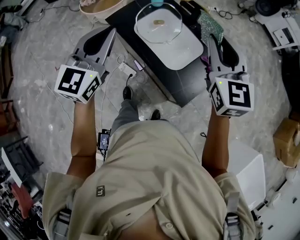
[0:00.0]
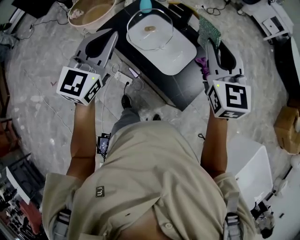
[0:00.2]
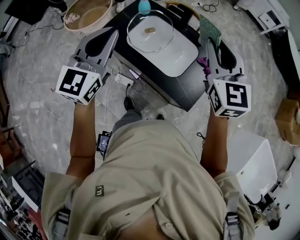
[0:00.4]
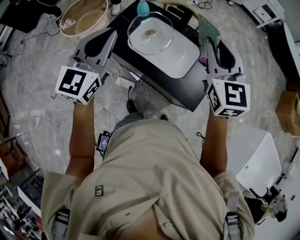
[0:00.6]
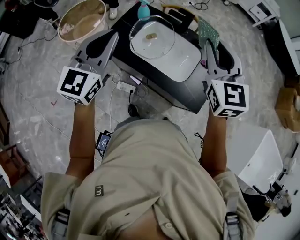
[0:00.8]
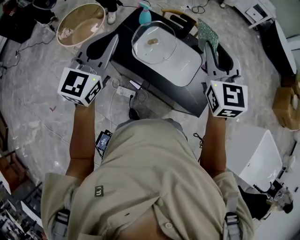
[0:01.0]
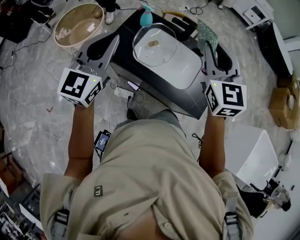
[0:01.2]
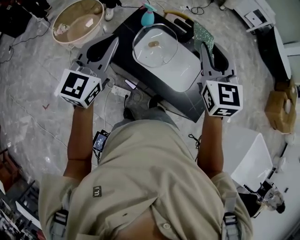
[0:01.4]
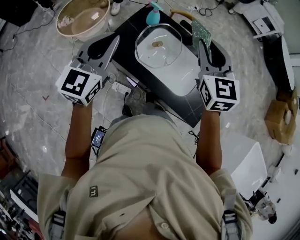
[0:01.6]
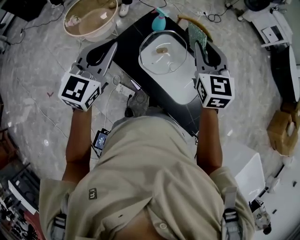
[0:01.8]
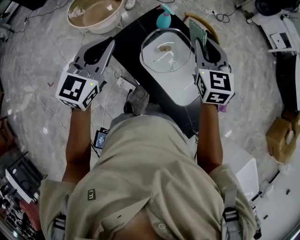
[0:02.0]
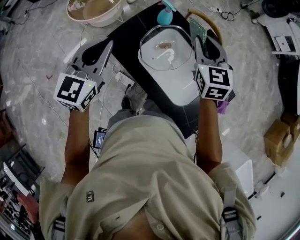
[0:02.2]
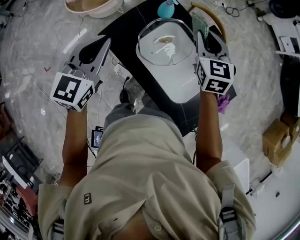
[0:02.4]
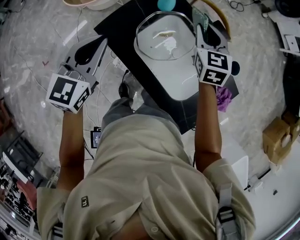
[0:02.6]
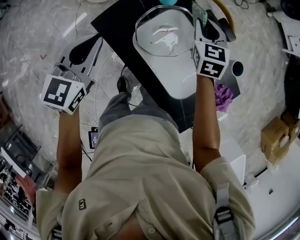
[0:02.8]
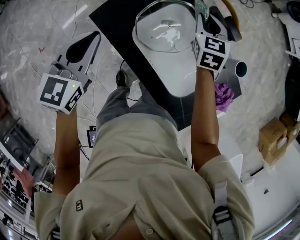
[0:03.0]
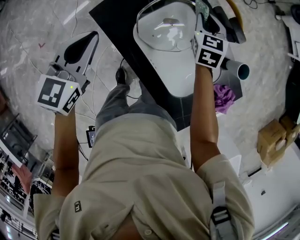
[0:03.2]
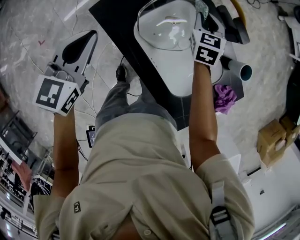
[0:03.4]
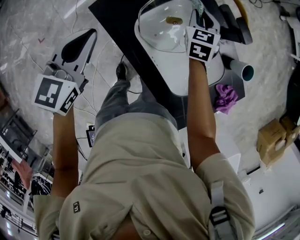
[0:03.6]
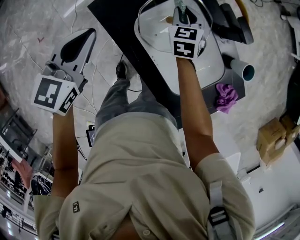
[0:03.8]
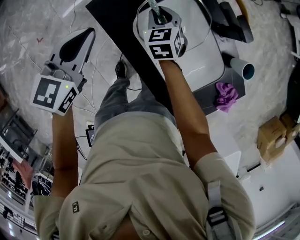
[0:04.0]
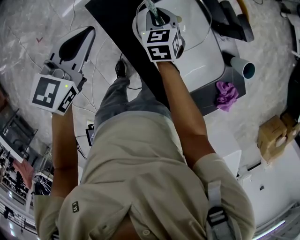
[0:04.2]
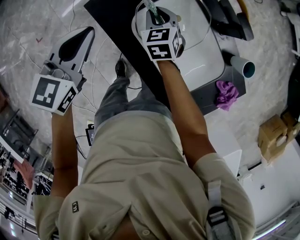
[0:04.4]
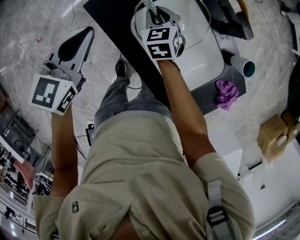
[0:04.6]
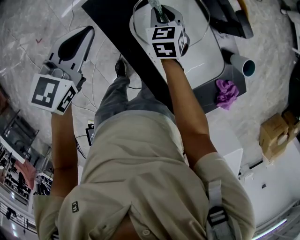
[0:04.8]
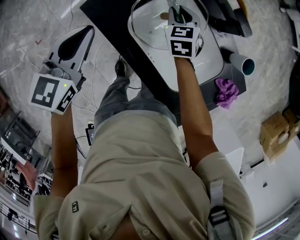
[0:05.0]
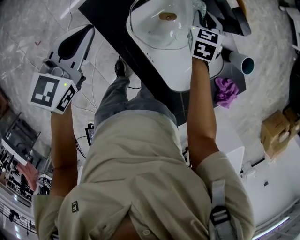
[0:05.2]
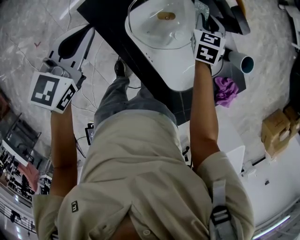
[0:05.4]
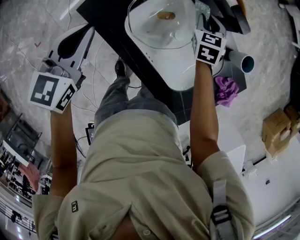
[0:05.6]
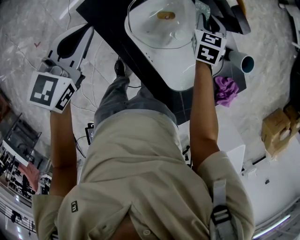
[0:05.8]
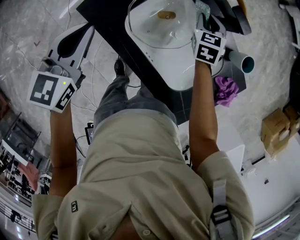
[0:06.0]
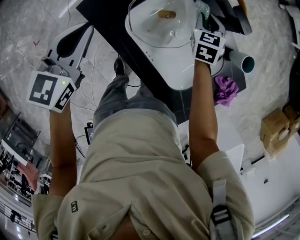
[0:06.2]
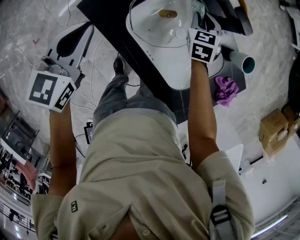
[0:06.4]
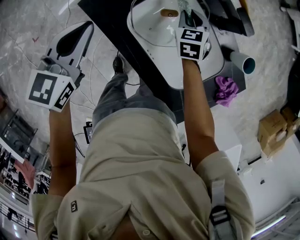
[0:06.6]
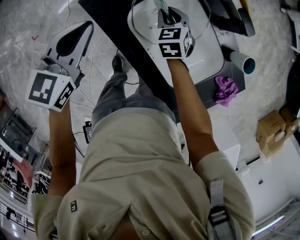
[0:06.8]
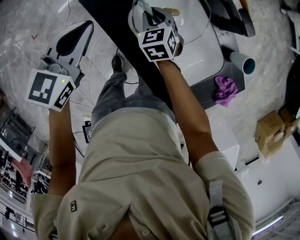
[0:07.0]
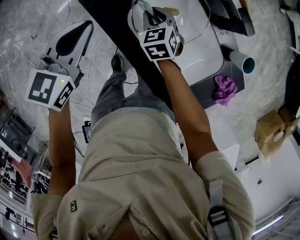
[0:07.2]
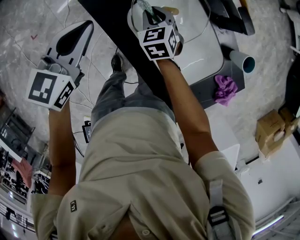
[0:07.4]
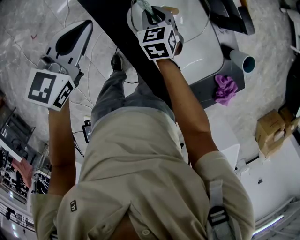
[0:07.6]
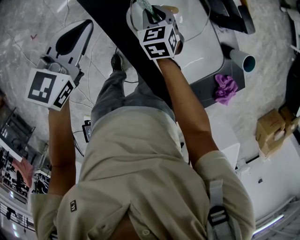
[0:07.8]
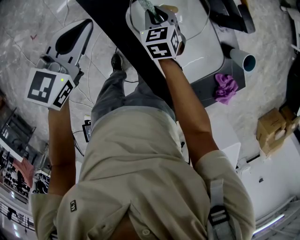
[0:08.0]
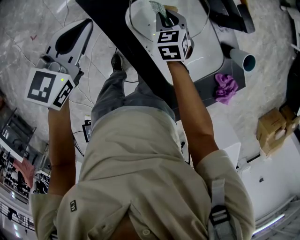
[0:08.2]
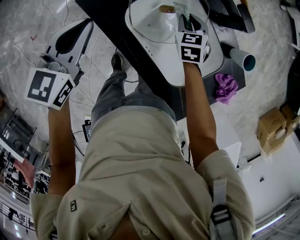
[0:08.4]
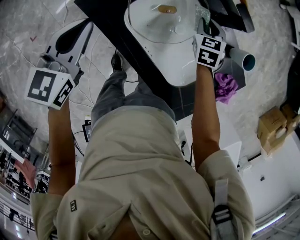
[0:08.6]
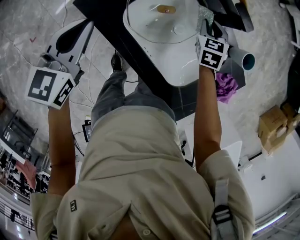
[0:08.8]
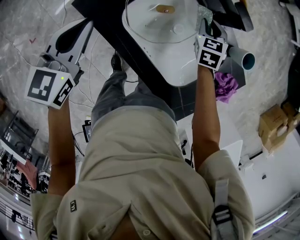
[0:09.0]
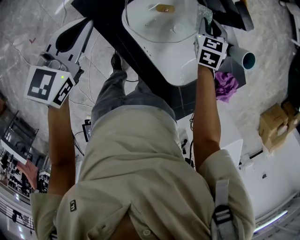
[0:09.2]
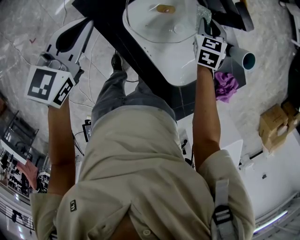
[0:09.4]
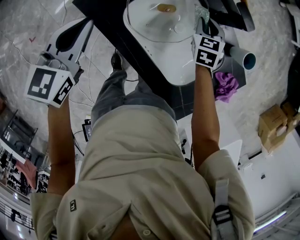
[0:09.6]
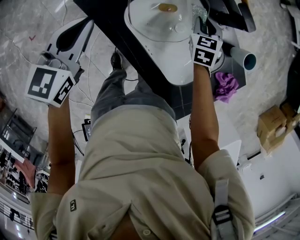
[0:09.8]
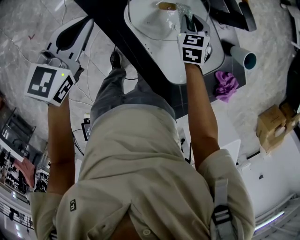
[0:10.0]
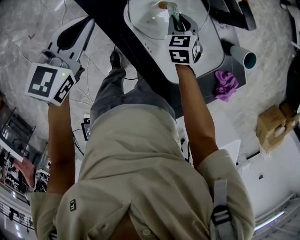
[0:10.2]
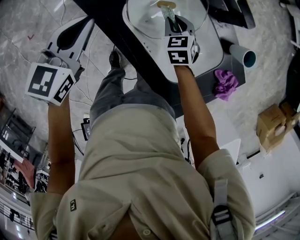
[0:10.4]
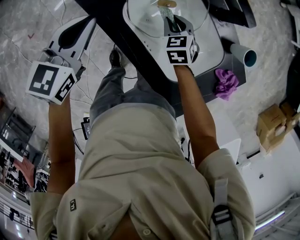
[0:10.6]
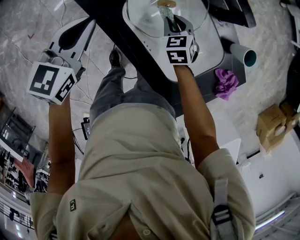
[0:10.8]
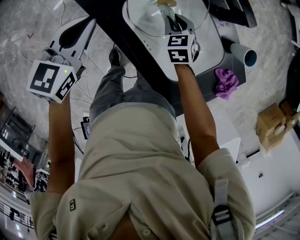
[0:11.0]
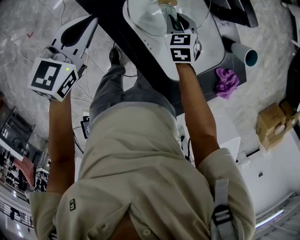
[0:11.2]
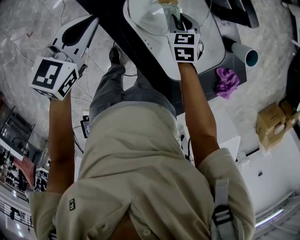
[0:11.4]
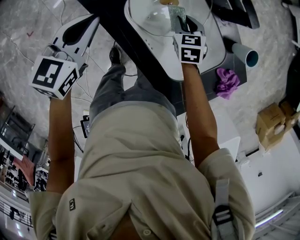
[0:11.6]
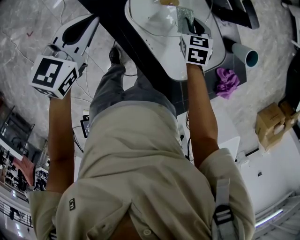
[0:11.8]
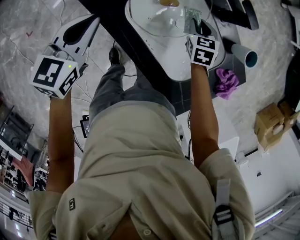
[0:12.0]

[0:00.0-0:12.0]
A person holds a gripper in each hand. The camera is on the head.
0:00.0 to 0:01.6: The right gripper goes about 20 cm to the left and forward; the left gripper is displaced forward and to the left by about 20 cm.
0:01.6 to 0:03.0: The left gripper is displaced downward by some 15 cm, and changes its angle by approximately 30 degrees. Meanwhile the right gripper moves downward and forward, roughly 35 cm, and swivels about 20 degrees.
0:03.0 to 0:04.4: The right gripper heads to the left, downward and backward, covering about 20 cm.
0:04.4 to 0:06.0: The right gripper is displaced to the right by some 20 cm, and turns by approximately 20 degrees.
0:06.0 to 0:07.6: The right gripper heads to the left, covering some 20 cm, and changes its angle by roughly 20 degrees.
0:07.6 to 0:09.0: The right gripper goes roughly 25 cm to the right, and changes its angle by some 20 degrees.
0:09.0 to 0:10.4: The right gripper moves to the left and backward, some 15 cm.
0:10.4 to 0:12.0: The right gripper travels to the right by about 10 cm.

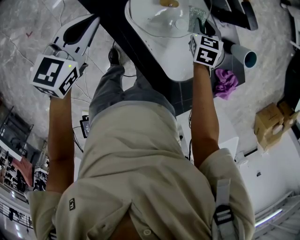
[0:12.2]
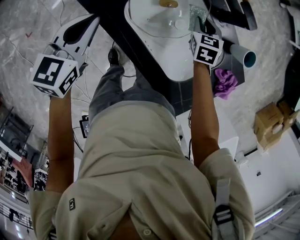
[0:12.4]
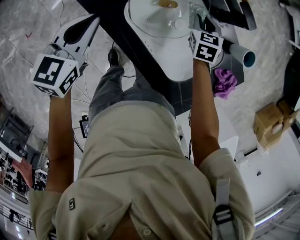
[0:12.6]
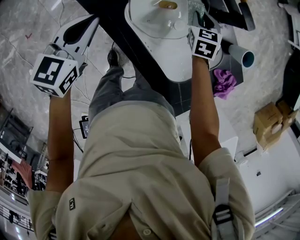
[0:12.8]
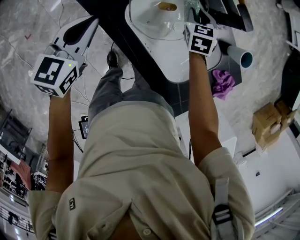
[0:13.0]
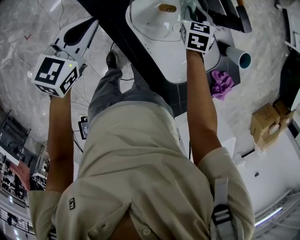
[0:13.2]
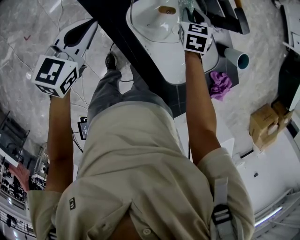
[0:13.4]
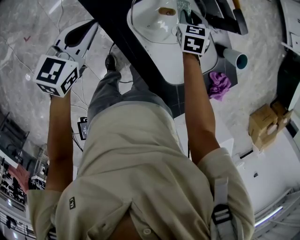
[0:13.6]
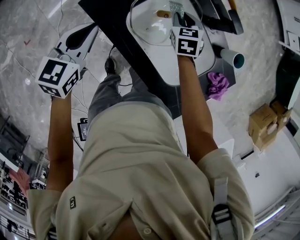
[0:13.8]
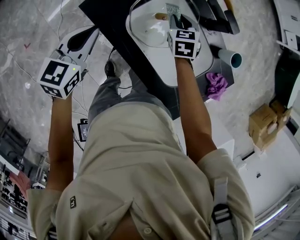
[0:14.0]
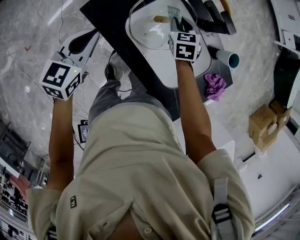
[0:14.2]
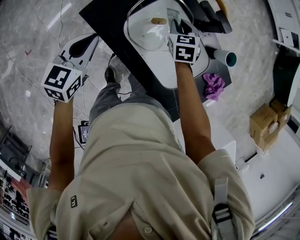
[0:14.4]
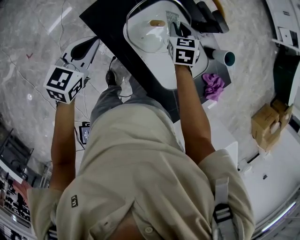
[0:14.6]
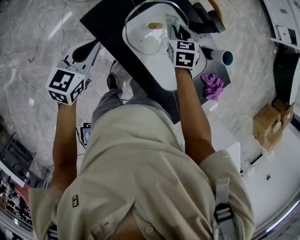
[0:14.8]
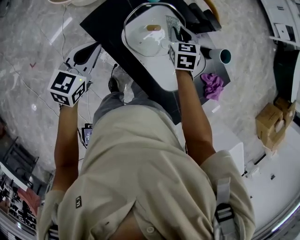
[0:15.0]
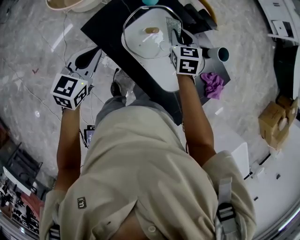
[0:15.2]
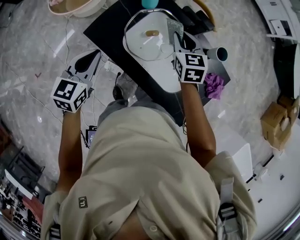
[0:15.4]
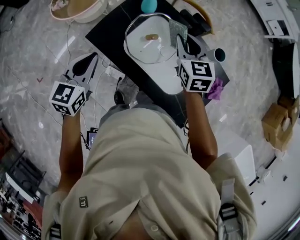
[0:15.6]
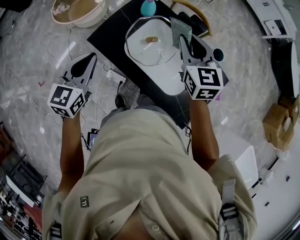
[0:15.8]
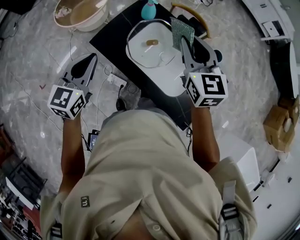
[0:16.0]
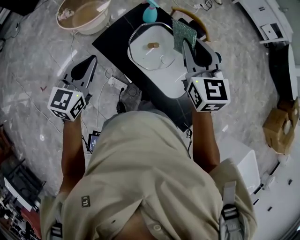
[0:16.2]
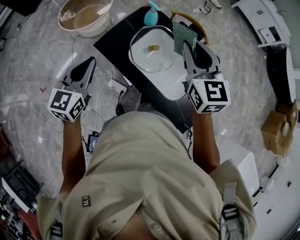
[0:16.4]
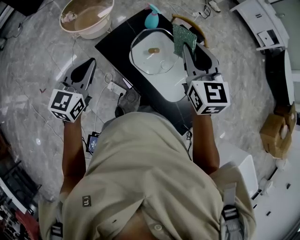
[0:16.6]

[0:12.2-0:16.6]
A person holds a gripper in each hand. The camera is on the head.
0:12.2 to 0:13.6: The right gripper shifts roughly 10 cm to the left.
0:13.6 to 0:15.2: The right gripper moves upward, about 15 cm; the left gripper goes approximately 5 cm upward.
0:15.2 to 0:16.6: The right gripper heads upward and backward, covering approximately 30 cm, and changes its angle by some 30 degrees. Meanwhile the left gripper shifts about 15 cm upward, backward and to the left.

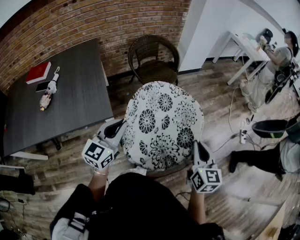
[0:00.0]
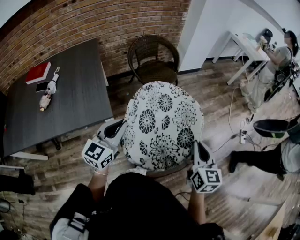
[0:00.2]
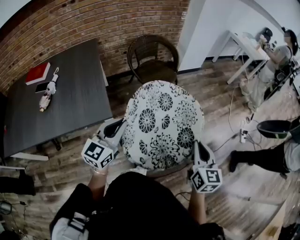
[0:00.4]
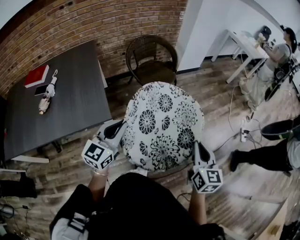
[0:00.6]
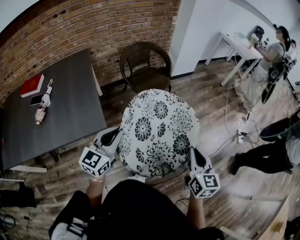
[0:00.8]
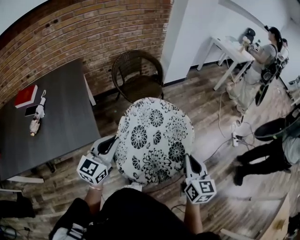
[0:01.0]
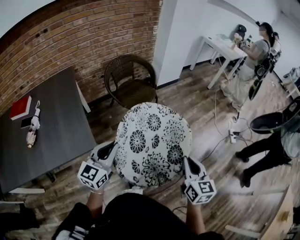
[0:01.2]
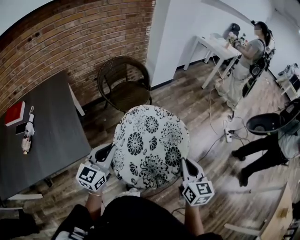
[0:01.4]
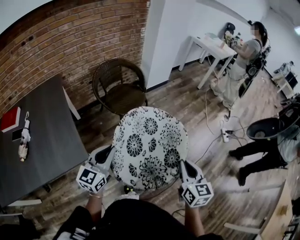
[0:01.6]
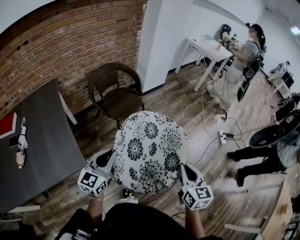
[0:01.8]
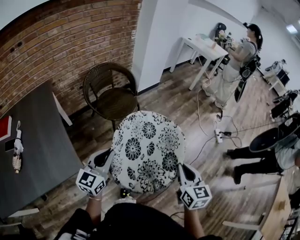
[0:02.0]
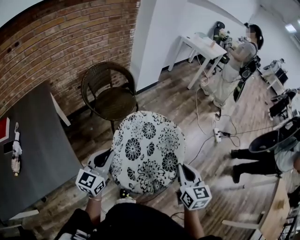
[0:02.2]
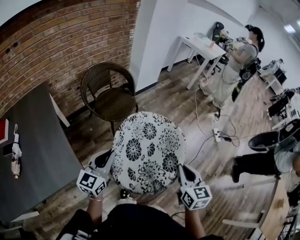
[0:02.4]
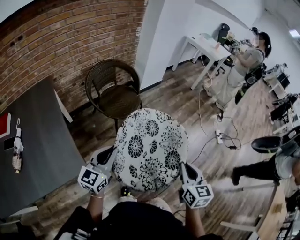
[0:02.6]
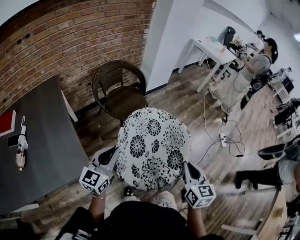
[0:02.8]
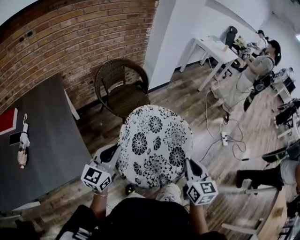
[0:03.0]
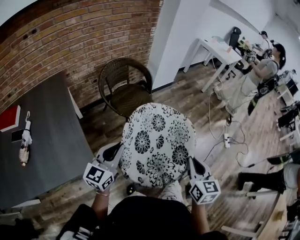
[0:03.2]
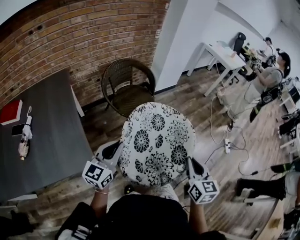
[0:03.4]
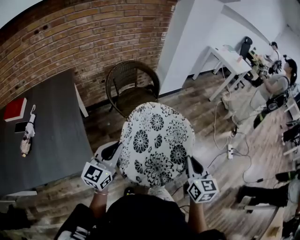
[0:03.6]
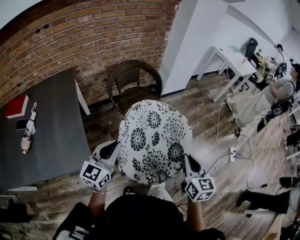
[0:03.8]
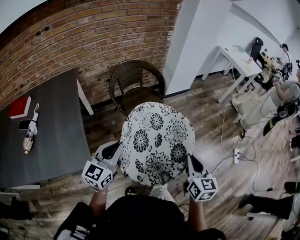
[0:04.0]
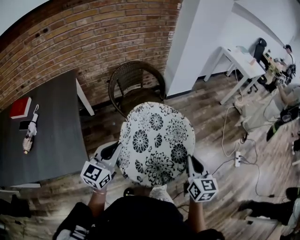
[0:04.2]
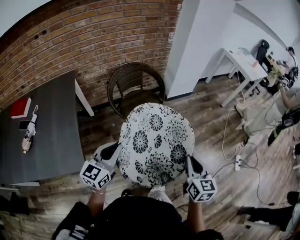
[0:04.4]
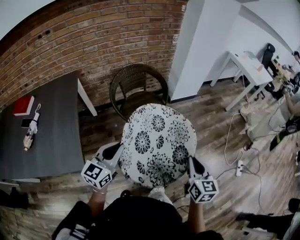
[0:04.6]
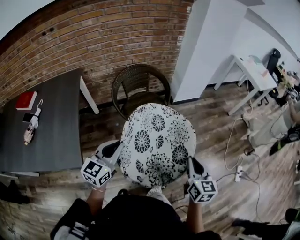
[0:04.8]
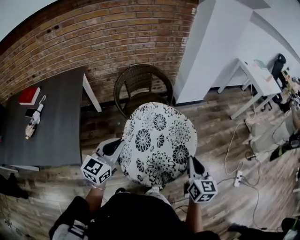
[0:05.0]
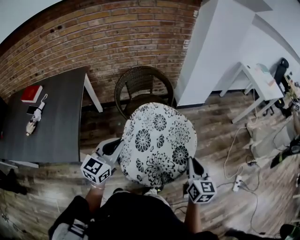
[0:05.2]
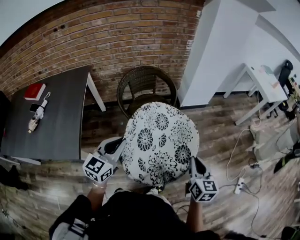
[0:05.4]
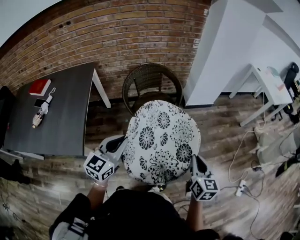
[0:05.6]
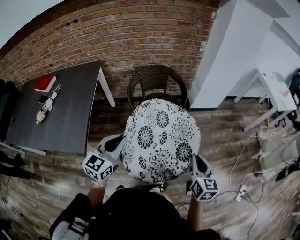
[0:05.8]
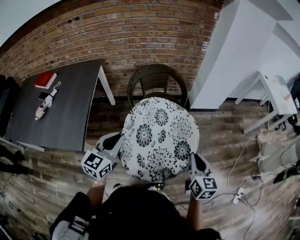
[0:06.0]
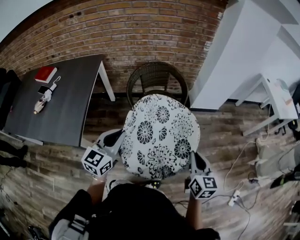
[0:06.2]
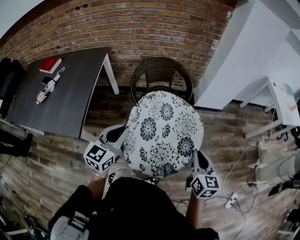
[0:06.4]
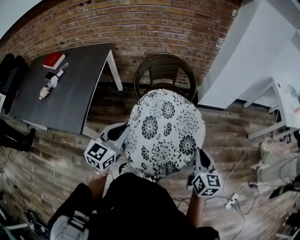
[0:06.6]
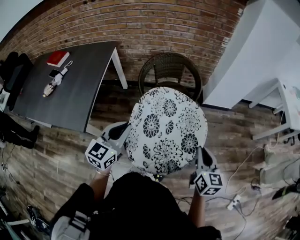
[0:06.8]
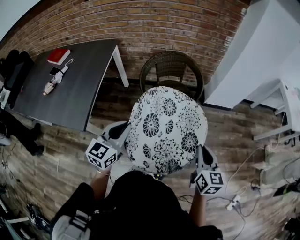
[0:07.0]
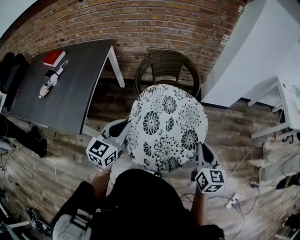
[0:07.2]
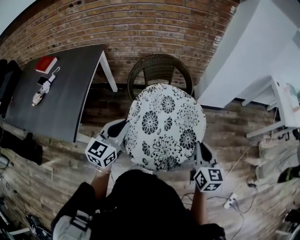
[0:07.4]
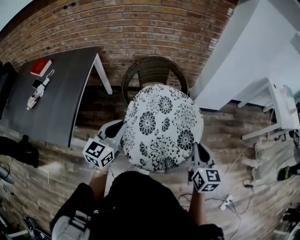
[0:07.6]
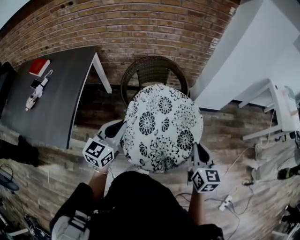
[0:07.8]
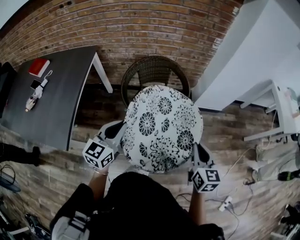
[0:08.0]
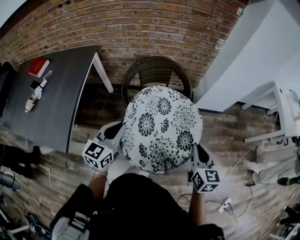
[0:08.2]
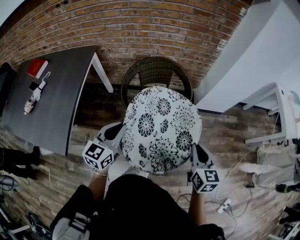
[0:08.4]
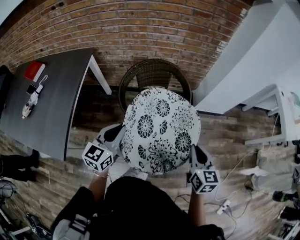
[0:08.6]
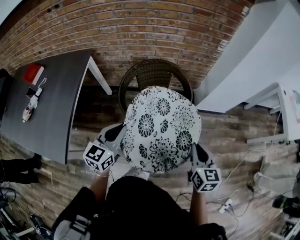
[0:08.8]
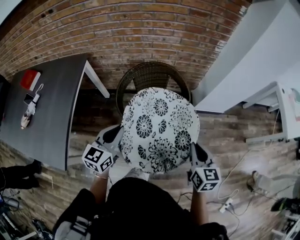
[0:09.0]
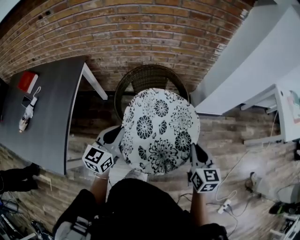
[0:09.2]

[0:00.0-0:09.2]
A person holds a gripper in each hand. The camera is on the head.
0:00.0 to 0:01.6: The left gripper heads forward, covering roughly 10 cm. The right gripper ends up some 5 cm from where it was.
0:01.6 to 0:03.0: The two grippers go about 5 cm forward.
0:03.0 to 0:04.6: The right gripper moves forward, roughly 20 cm, while the left gripper travels forward and to the right by approximately 15 cm.
0:04.6 to 0:06.2: The right gripper moves forward, about 10 cm; the left gripper moves some 5 cm.
0:06.2 to 0:07.6: The two grippers go approximately 15 cm forward.
0:07.6 to 0:09.2: Both grippers travel together forward, some 15 cm.
